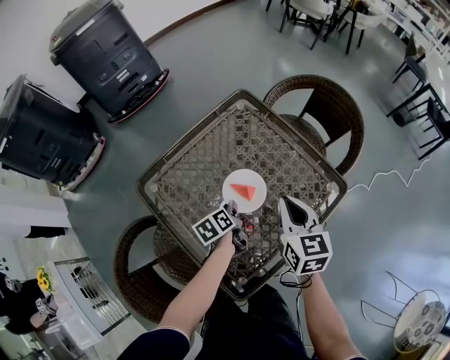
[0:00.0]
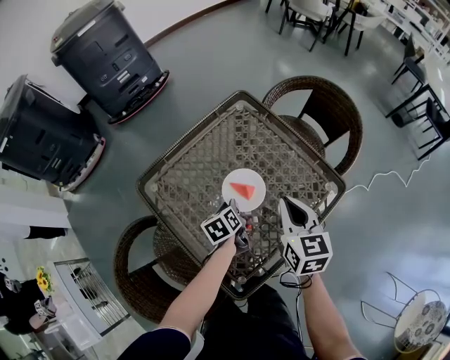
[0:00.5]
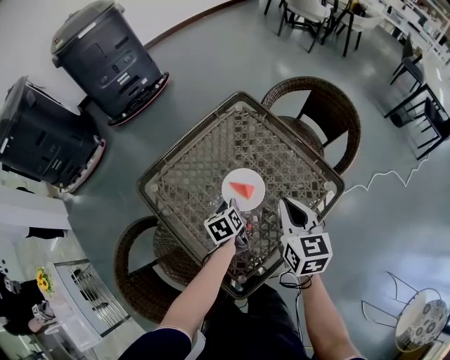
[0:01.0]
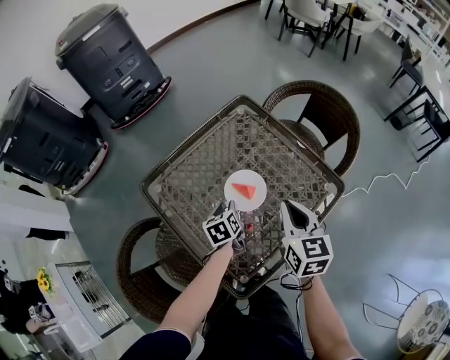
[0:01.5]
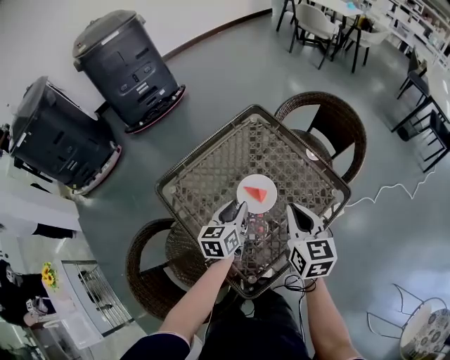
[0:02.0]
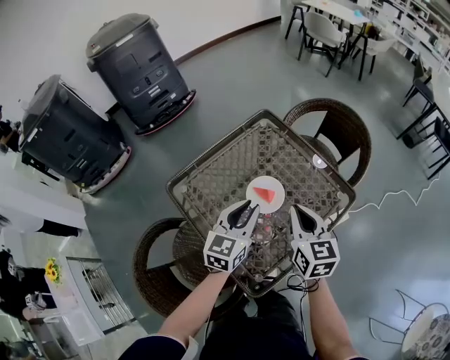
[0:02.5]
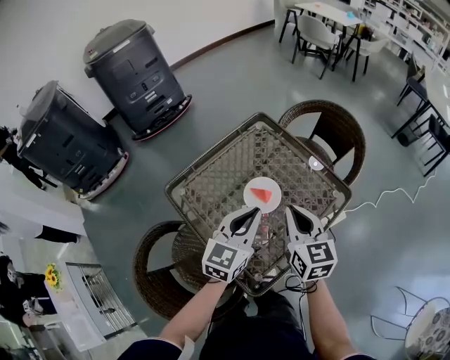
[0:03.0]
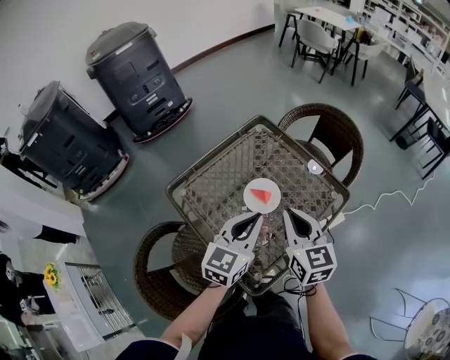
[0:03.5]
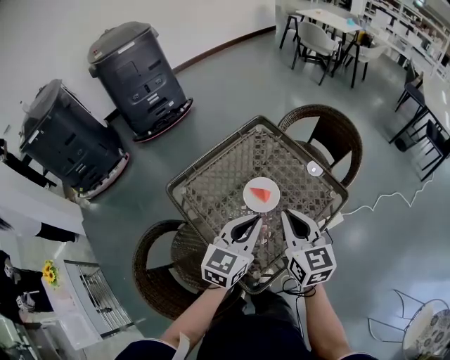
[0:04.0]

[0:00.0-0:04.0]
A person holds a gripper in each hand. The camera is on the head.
0:00.0 to 0:02.0: The left gripper travels upward by some 10 cm, and changes its angle by roughly 40 degrees; the right gripper changes place by approximately 5 cm.
0:02.0 to 0:04.0: The left gripper moves upward and backward, about 20 cm, turns by approximately 30 degrees, and closes its fingers. Meanwhile the right gripper is displaced upward and backward by roughly 10 cm.

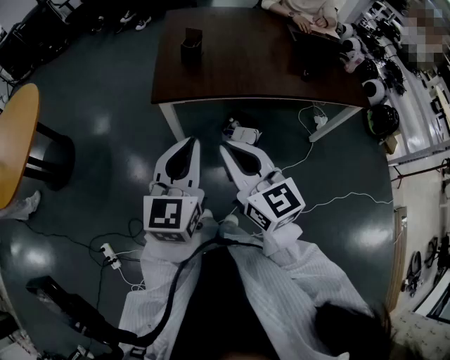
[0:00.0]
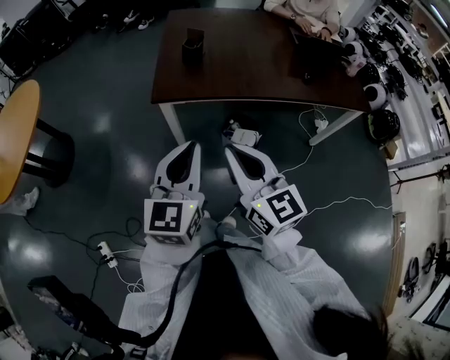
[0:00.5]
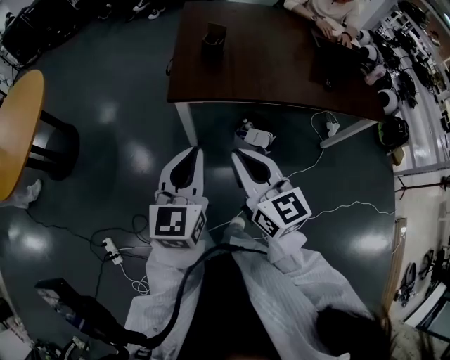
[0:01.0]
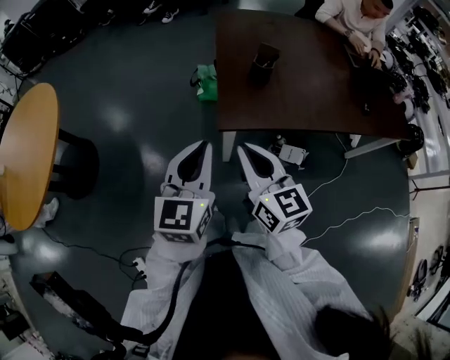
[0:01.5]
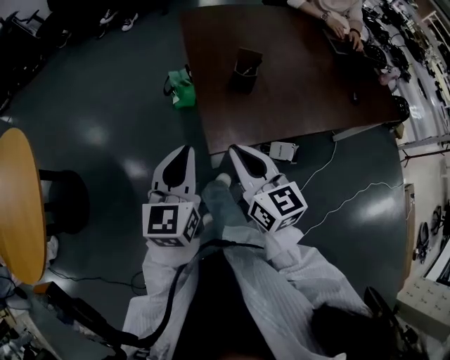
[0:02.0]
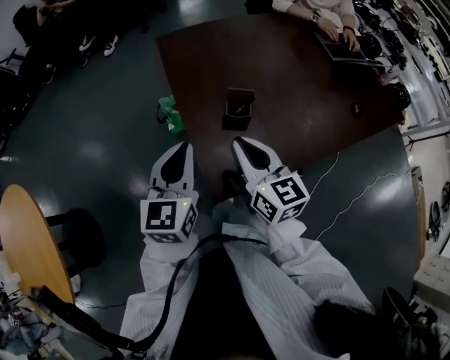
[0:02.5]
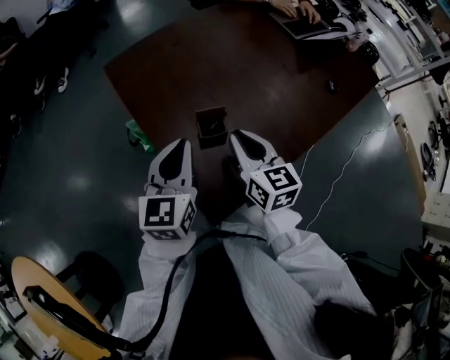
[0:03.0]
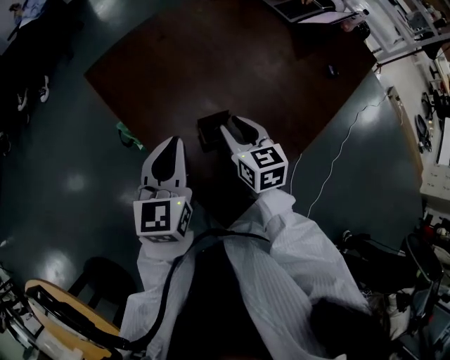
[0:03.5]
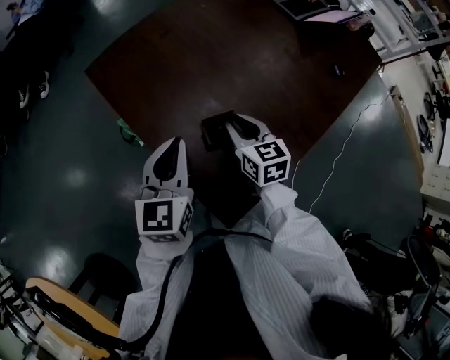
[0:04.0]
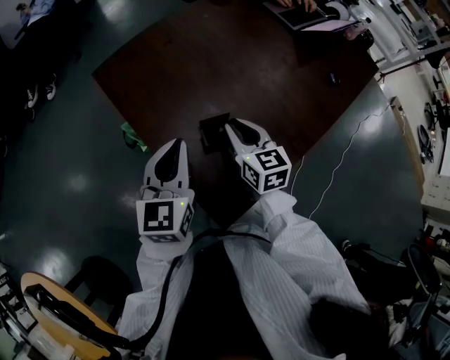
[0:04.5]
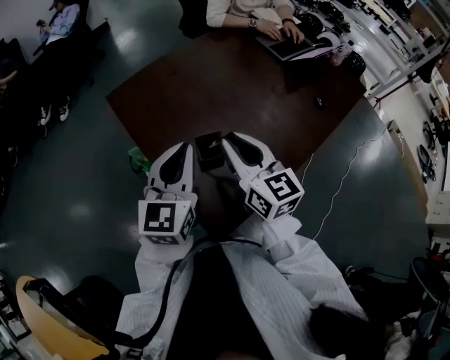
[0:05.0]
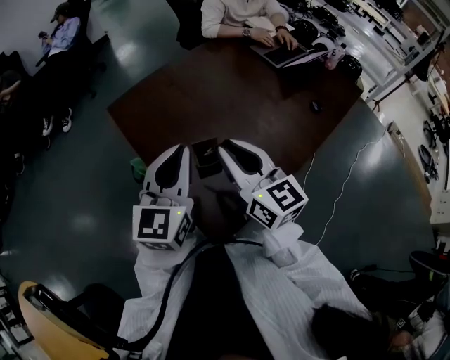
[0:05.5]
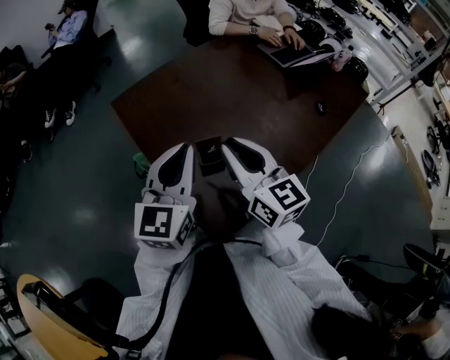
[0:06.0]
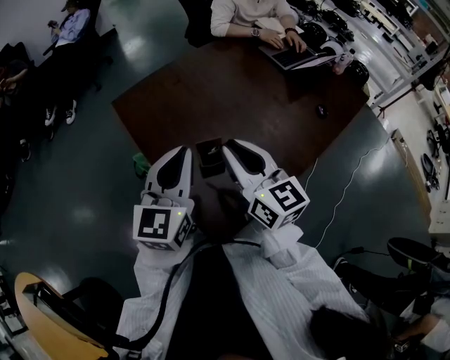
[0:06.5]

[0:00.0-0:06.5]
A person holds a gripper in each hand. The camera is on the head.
0:00.0 to 0:02.0: The pair of grippers is taken forward and to the left, roughly 40 cm.
0:02.0 to 0:04.5: The right gripper changes place by about 35 cm, and turns by some 30 degrees; the left gripper ends up some 35 cm from where it was, and turns by roughly 30 degrees.
0:04.5 to 0:06.5: The left gripper heads upward, covering some 10 cm. The right gripper shifts roughly 20 cm upward, and swivels about 20 degrees.

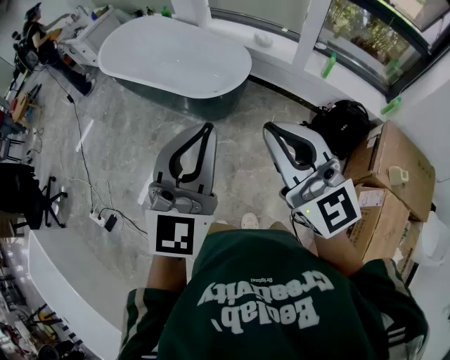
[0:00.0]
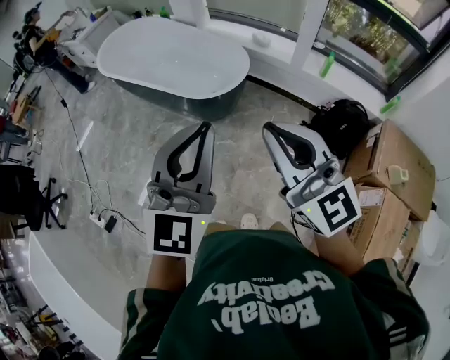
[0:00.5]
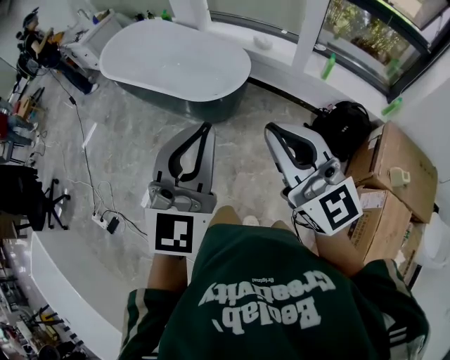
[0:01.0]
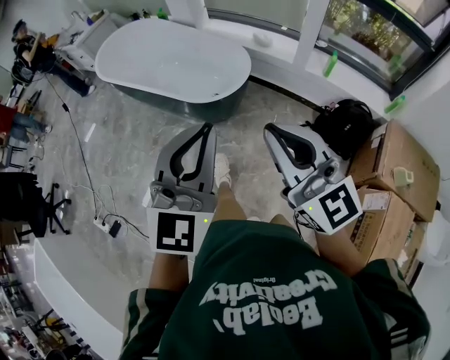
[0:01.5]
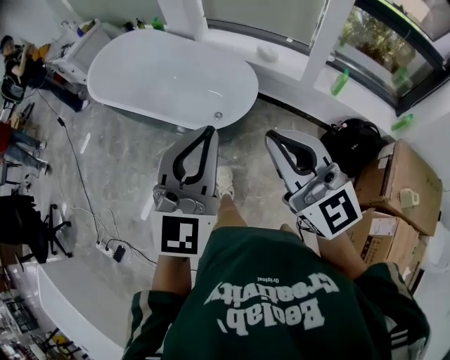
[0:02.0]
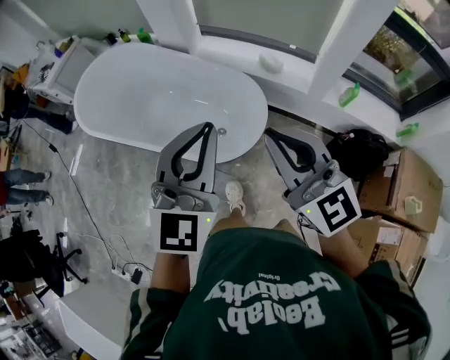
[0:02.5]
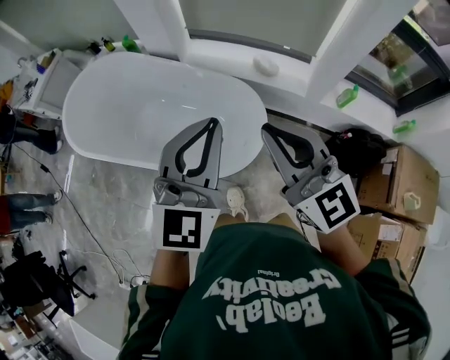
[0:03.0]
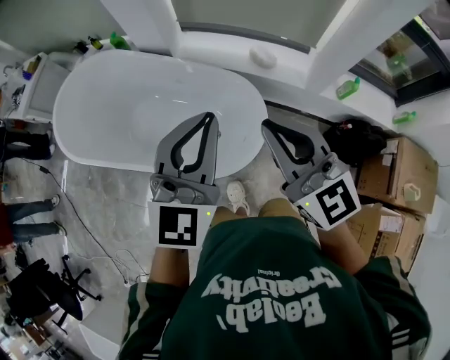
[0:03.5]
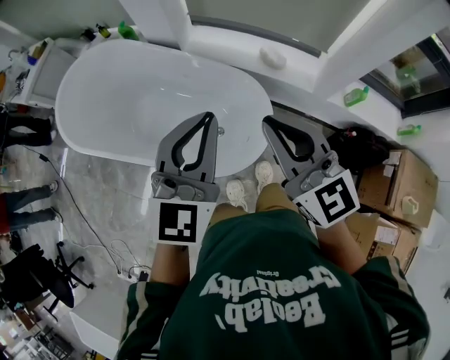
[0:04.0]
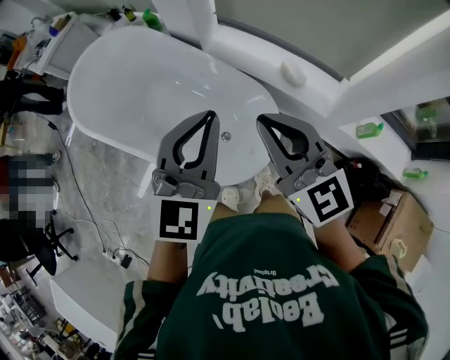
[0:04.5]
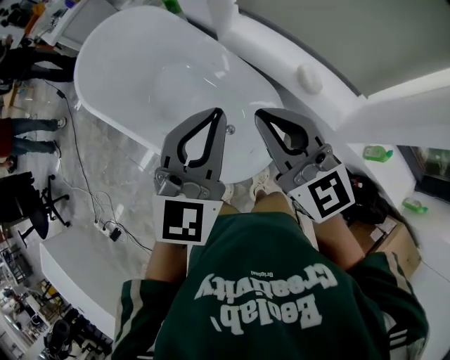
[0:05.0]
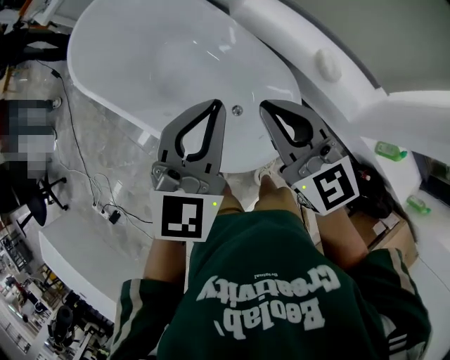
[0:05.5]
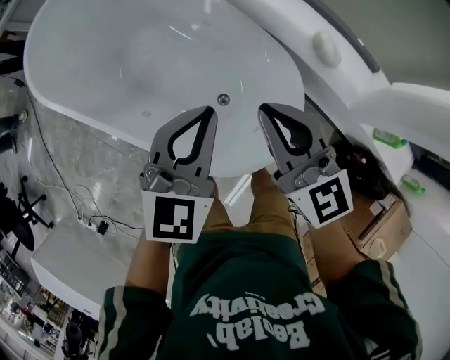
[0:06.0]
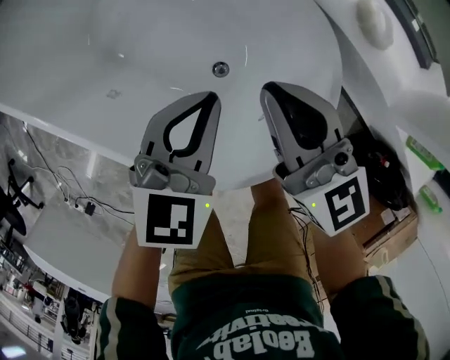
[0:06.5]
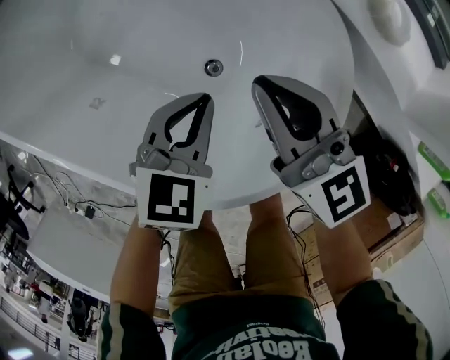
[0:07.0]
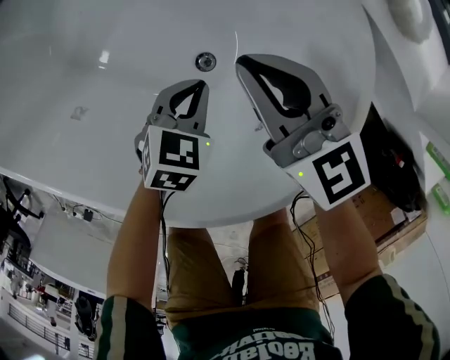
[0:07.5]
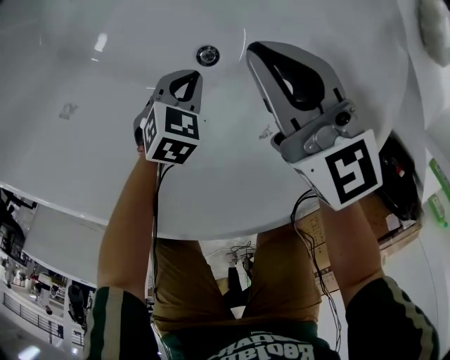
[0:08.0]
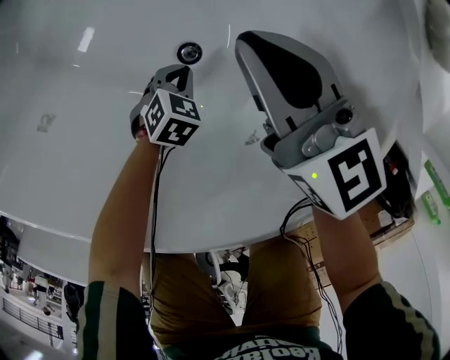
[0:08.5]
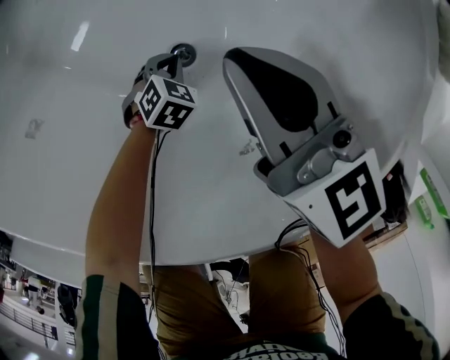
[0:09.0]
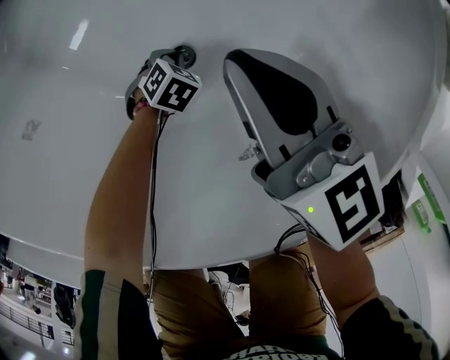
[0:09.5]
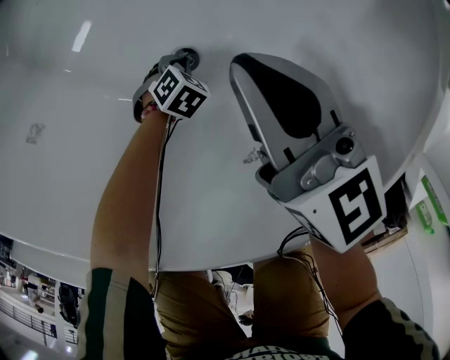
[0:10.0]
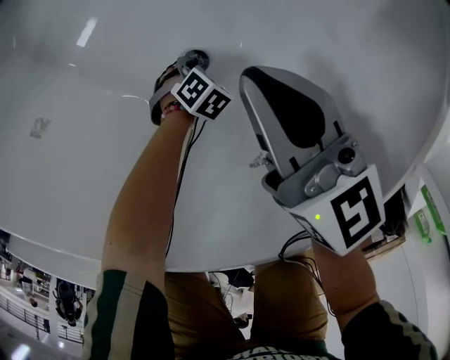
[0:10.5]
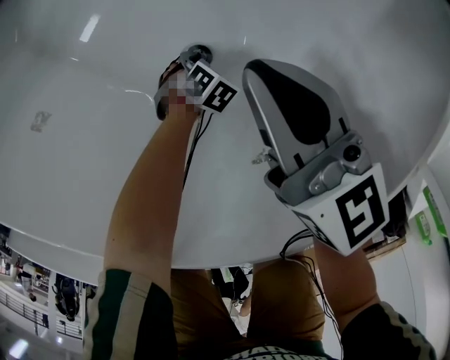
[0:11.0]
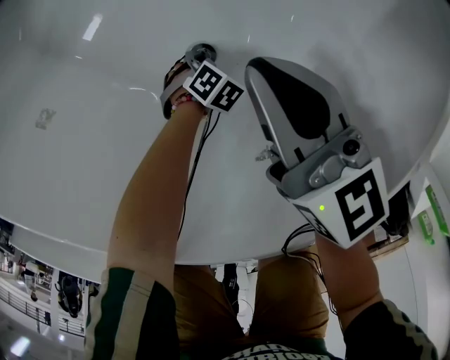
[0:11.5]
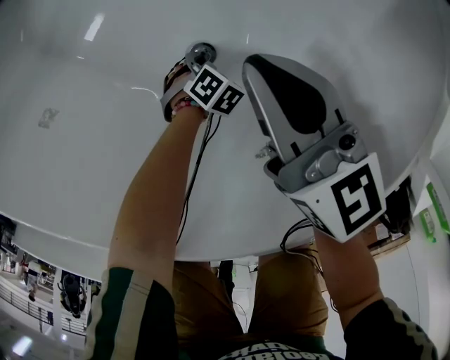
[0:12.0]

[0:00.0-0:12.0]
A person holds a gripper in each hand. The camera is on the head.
0:00.0 to 0:02.0: Both grippers move forward, some 20 cm.
0:02.0 to 0:04.0: The two grippers go about 35 cm forward.
0:04.0 to 0:06.0: The grippers both shift downward and forward by some 25 cm. The left gripper turns by some 20 degrees.
0:06.0 to 0:08.0: The two grippers go approximately 50 cm downward. The left gripper tips its fingers downward by approximately 40 degrees.
0:08.0 to 0:10.0: The left gripper is displaced downward by some 20 cm.
0:10.0 to 0:12.0: The grippers make only small movements.

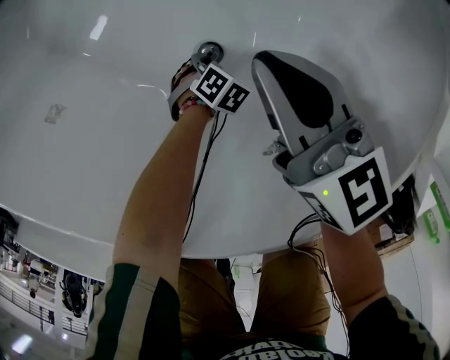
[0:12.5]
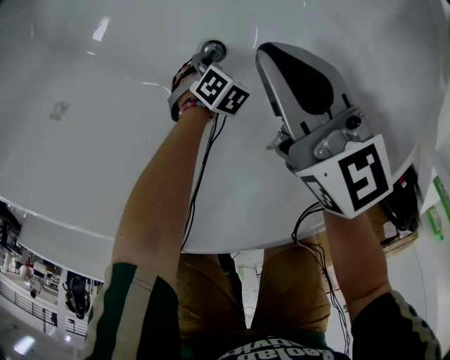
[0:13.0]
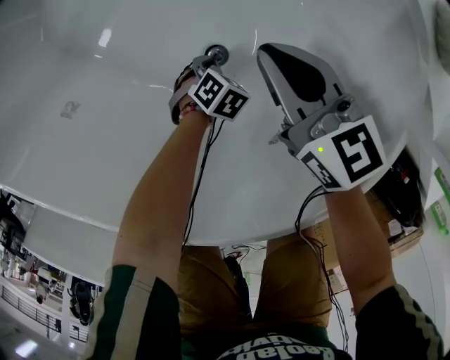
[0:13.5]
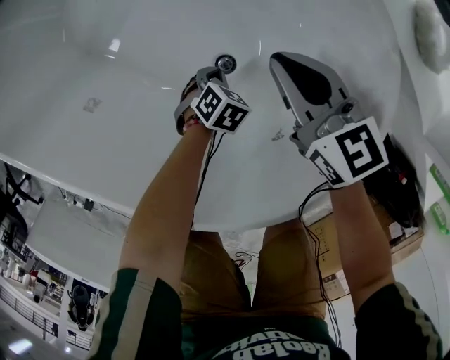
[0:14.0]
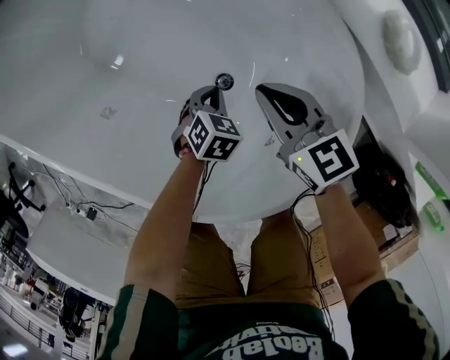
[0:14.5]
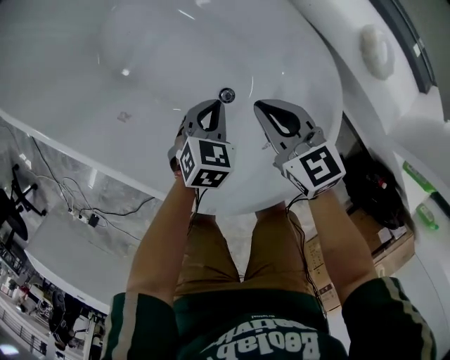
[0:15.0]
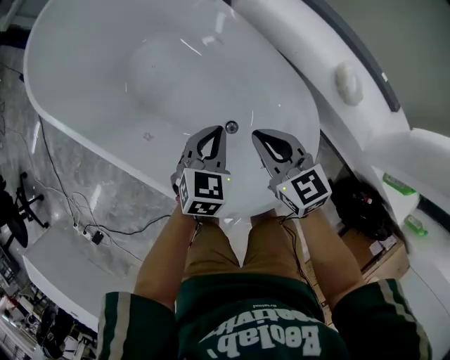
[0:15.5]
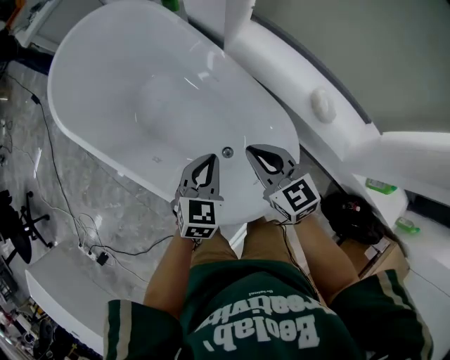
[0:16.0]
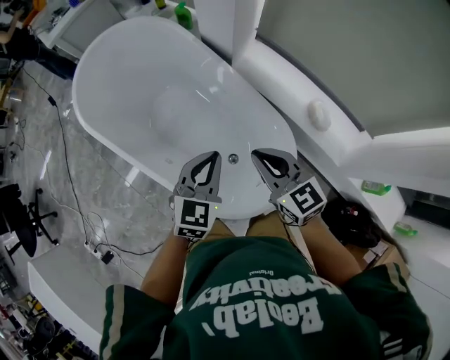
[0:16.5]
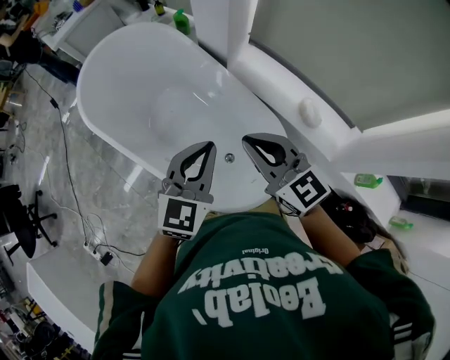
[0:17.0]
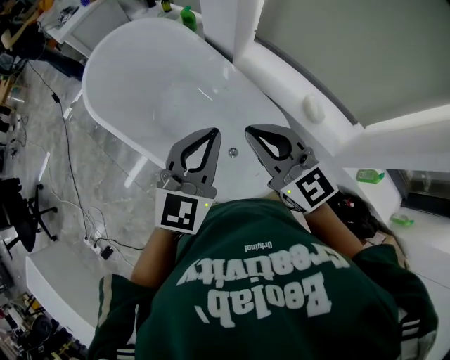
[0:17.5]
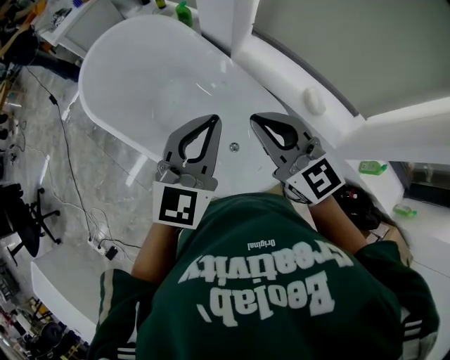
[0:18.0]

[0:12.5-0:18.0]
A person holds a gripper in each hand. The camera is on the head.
0:12.5 to 0:14.5: The right gripper heads upward, covering about 5 cm. Meanwhile the left gripper travels upward by roughly 25 cm, and rotates about 20 degrees.
0:14.5 to 0:16.0: Both grippers travel together upward, roughly 35 cm. The left gripper angles its fingers upward, by roughly 30 degrees.
0:16.0 to 0:18.0: Both grippers travel together upward, about 25 cm. The right gripper turns by about 20 degrees. The left gripper swivels roughly 30 degrees.
